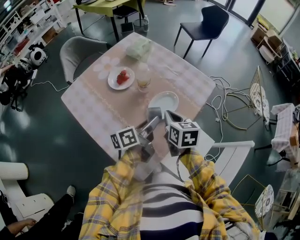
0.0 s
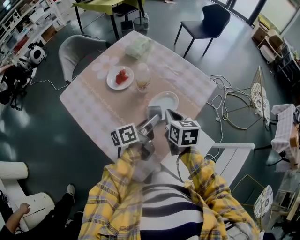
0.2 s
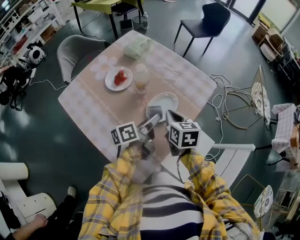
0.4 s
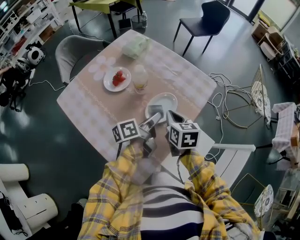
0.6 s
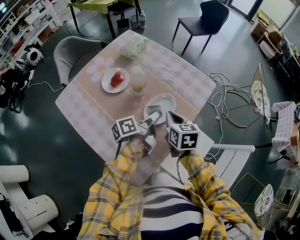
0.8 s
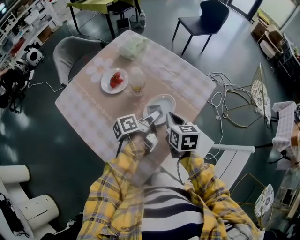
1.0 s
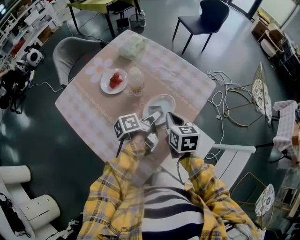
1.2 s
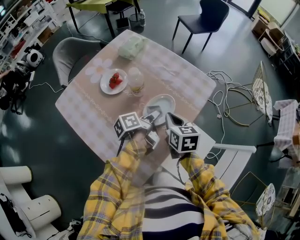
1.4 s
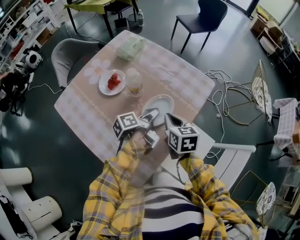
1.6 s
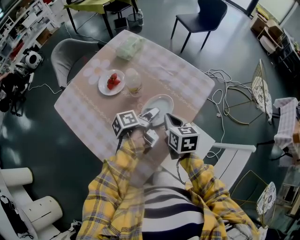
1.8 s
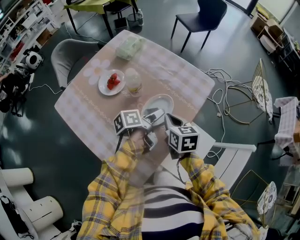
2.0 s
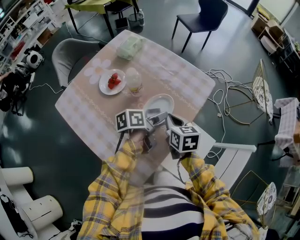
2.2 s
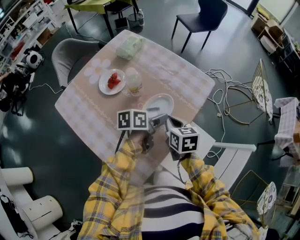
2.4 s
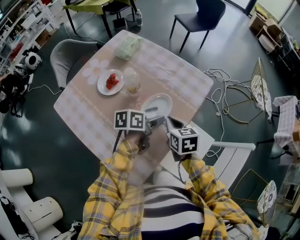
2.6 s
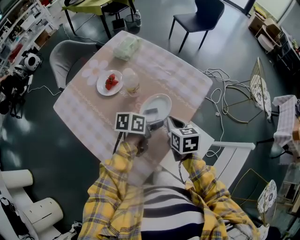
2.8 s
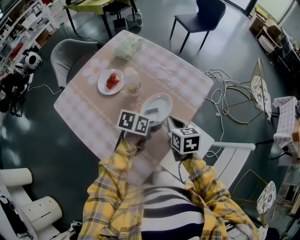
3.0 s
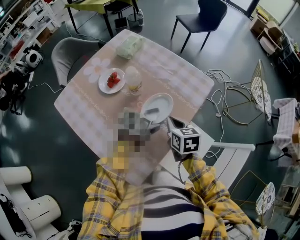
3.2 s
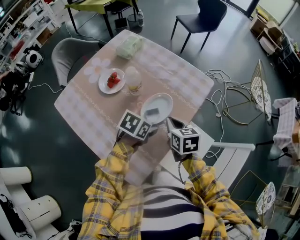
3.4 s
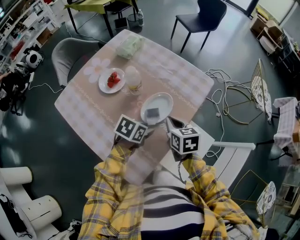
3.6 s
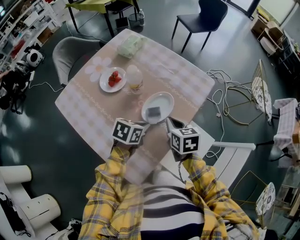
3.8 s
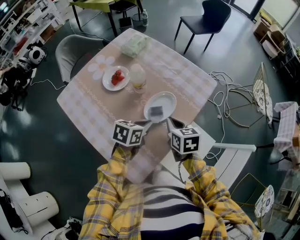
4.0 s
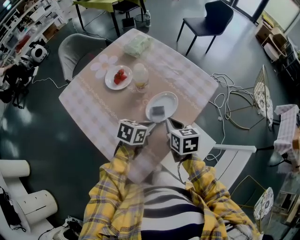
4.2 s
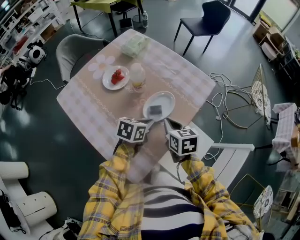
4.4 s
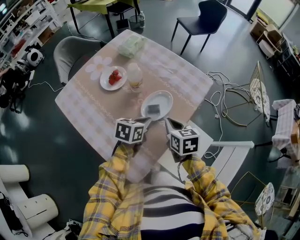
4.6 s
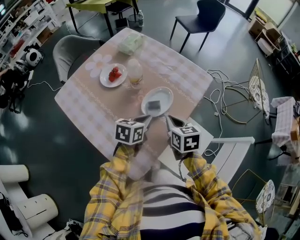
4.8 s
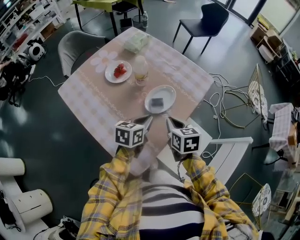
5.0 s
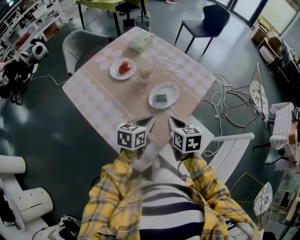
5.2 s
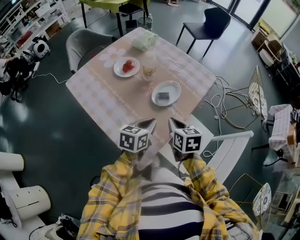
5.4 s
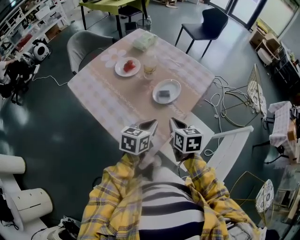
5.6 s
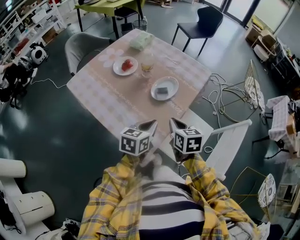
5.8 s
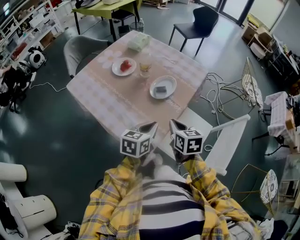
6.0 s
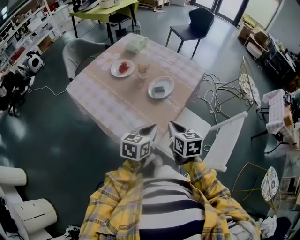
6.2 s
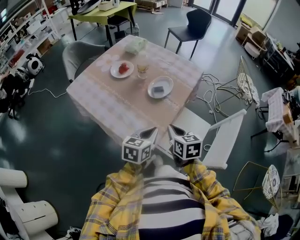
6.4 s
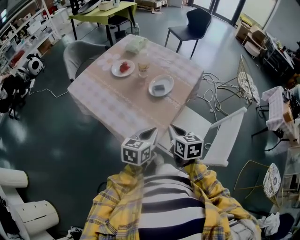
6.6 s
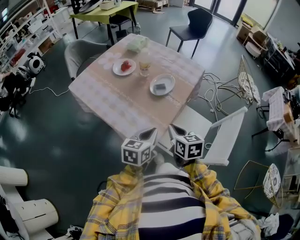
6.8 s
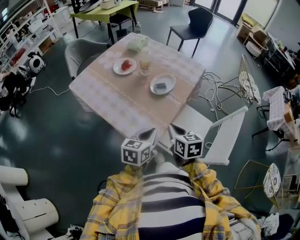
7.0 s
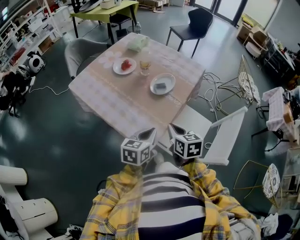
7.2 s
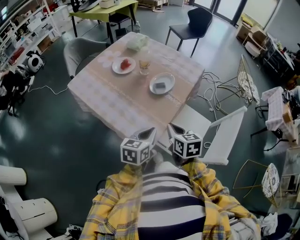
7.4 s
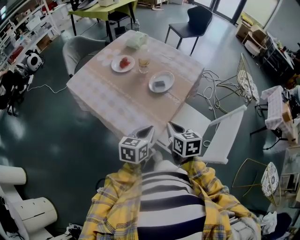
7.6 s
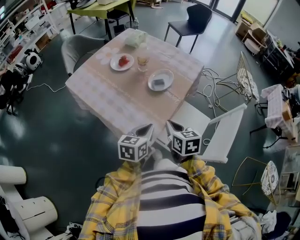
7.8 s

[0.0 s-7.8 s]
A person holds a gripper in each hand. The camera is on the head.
0.0 to 1.6 s: The right gripper ends up some 5 cm from where it was, while the left gripper heads forward and downward, covering some 10 cm, and changes its angle by approximately 30 degrees.
1.6 to 3.2 s: The left gripper is displaced backward by roughly 5 cm, rolls clockwise, seen from behind, by approximately 60 degrees, and opens, then closes once more.
3.2 to 4.6 s: The left gripper closes up.
4.6 to 6.2 s: Both grippers travel together backward, about 15 cm.
6.2 to 7.8 s: There are only small adjustments of the grippers.

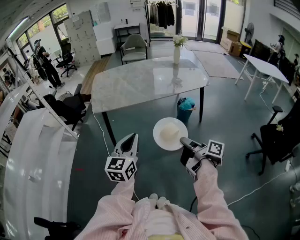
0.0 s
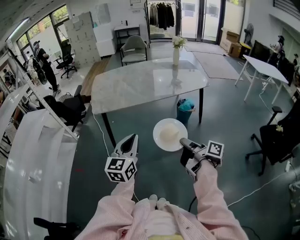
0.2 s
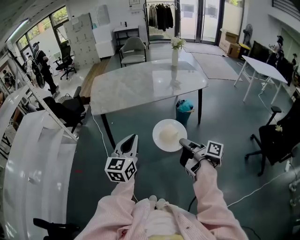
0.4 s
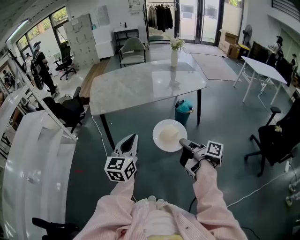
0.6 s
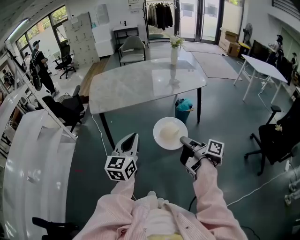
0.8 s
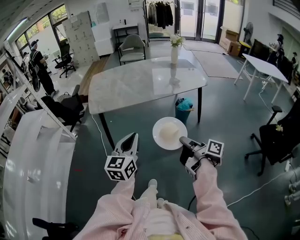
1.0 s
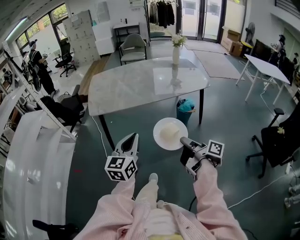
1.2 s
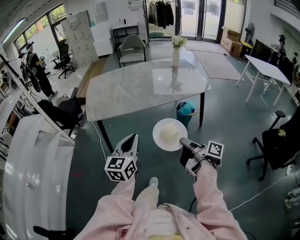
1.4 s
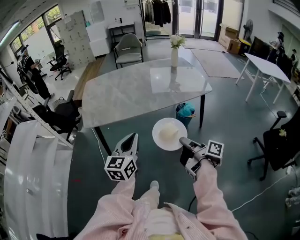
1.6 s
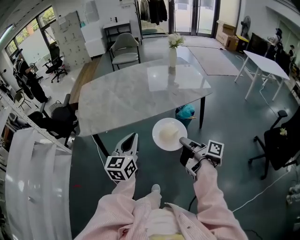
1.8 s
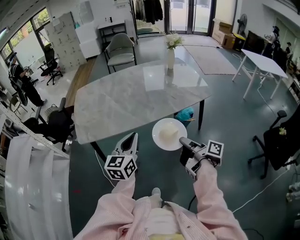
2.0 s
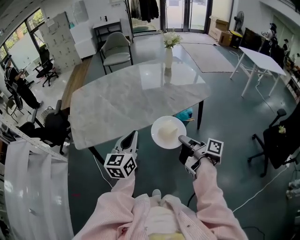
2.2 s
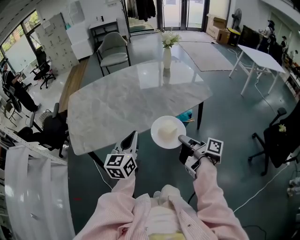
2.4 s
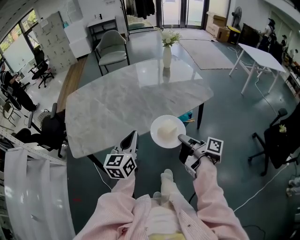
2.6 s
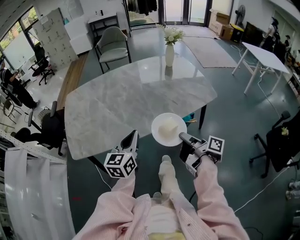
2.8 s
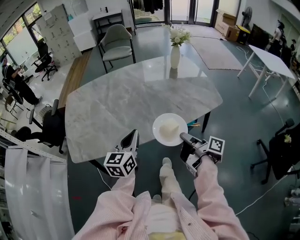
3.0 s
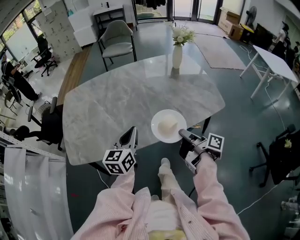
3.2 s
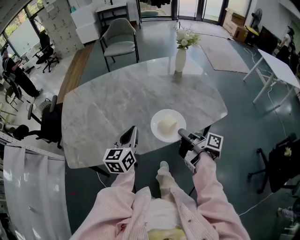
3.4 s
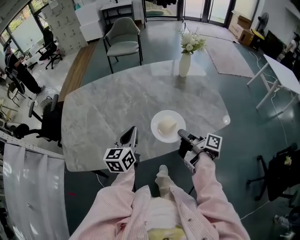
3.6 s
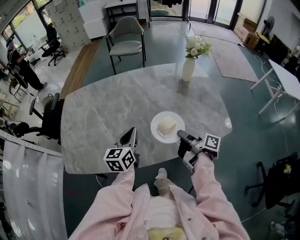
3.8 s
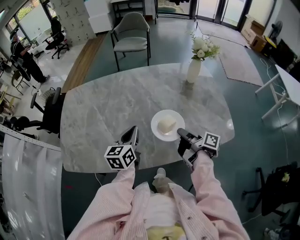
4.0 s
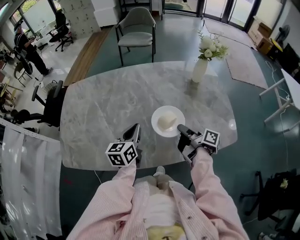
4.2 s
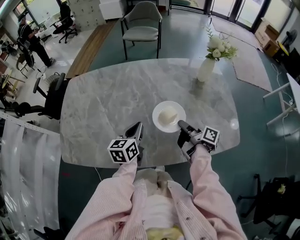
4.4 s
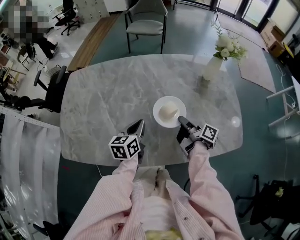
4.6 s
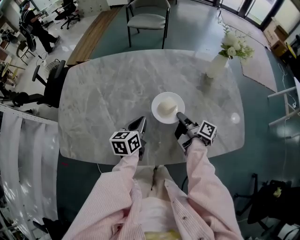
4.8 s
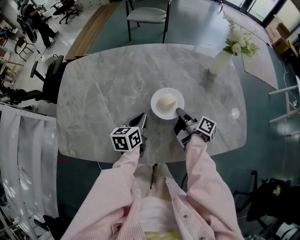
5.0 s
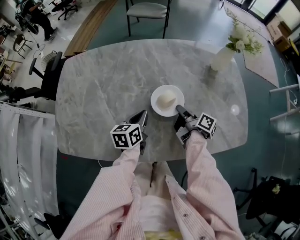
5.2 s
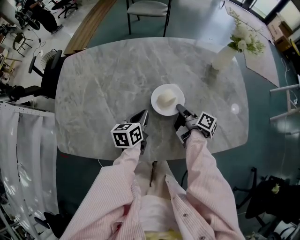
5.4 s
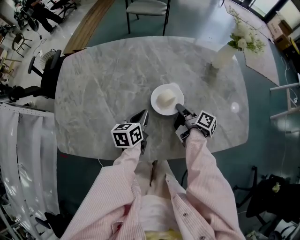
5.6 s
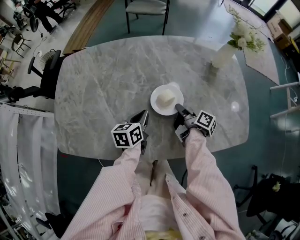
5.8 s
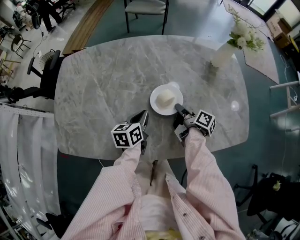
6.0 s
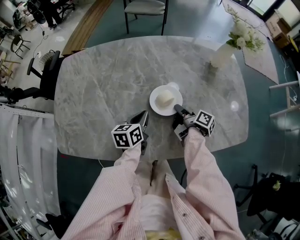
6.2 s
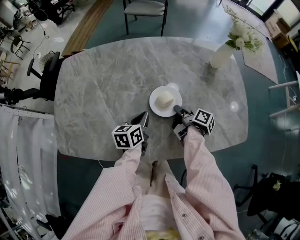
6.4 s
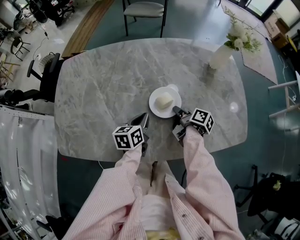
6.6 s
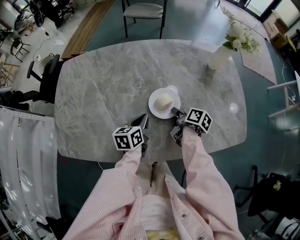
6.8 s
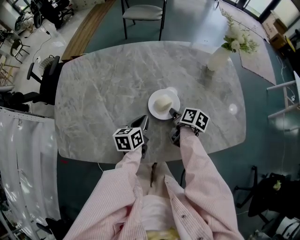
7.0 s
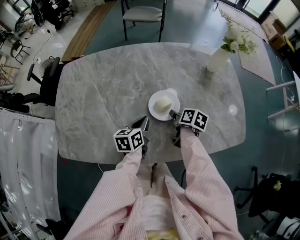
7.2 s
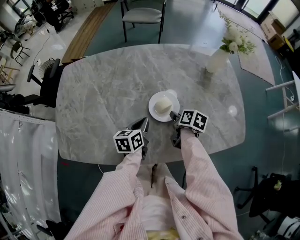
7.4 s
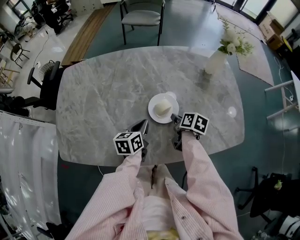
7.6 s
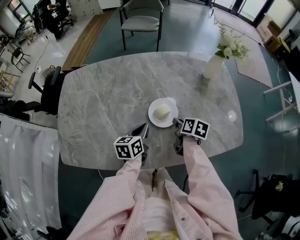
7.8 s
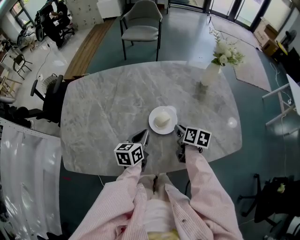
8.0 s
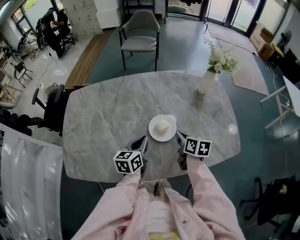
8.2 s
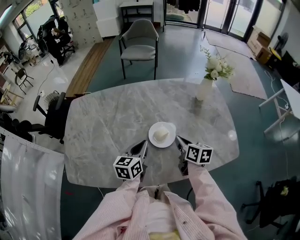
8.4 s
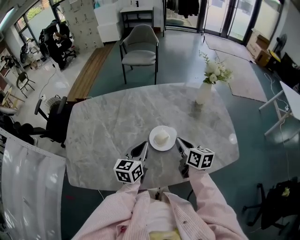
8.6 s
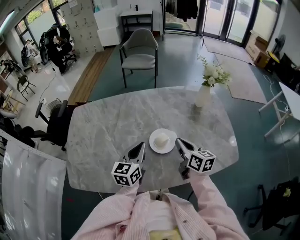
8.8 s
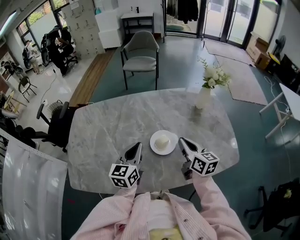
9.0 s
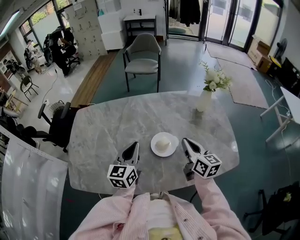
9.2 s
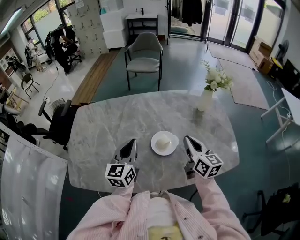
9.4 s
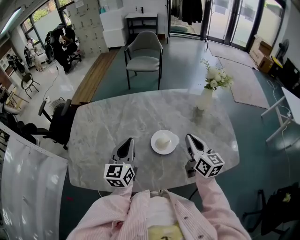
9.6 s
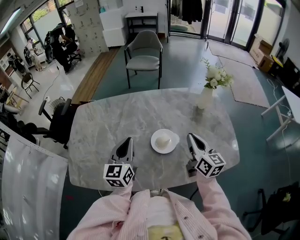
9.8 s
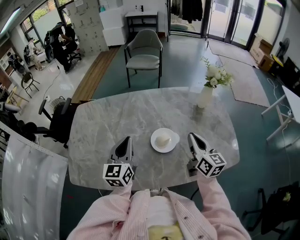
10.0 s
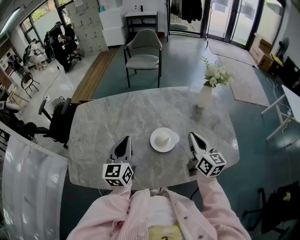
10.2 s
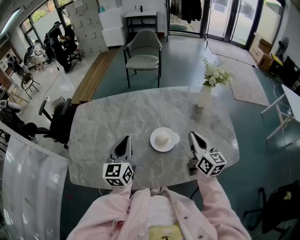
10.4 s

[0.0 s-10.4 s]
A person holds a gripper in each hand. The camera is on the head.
0.0 to 1.4 s: The left gripper shifts by approximately 10 cm.
1.4 to 3.0 s: The left gripper moves about 35 cm.
3.0 to 4.4 s: The left gripper moves some 25 cm, and swivels approximately 20 degrees.
4.4 to 6.0 s: The left gripper travels downward by approximately 10 cm.
7.4 to 9.0 s: The left gripper heads upward, covering approximately 15 cm, and turns by approximately 30 degrees.
9.0 to 10.4 s: The left gripper moves some 5 cm.

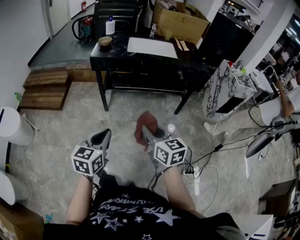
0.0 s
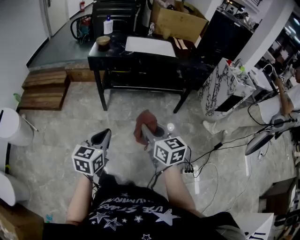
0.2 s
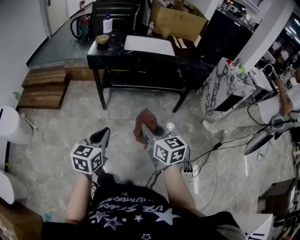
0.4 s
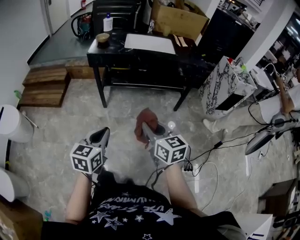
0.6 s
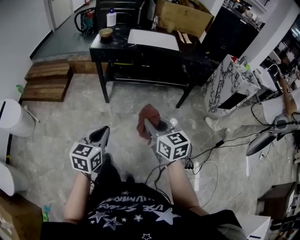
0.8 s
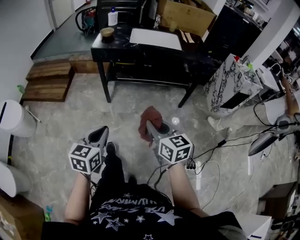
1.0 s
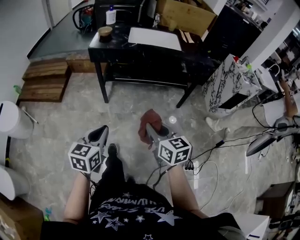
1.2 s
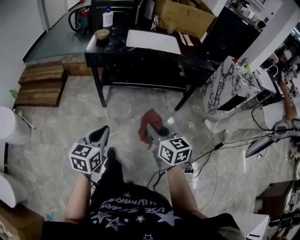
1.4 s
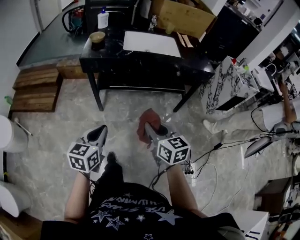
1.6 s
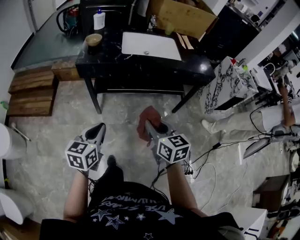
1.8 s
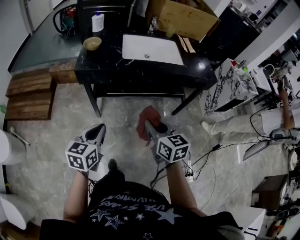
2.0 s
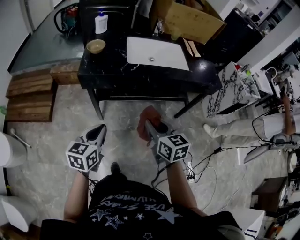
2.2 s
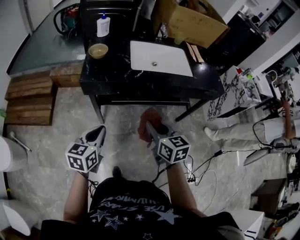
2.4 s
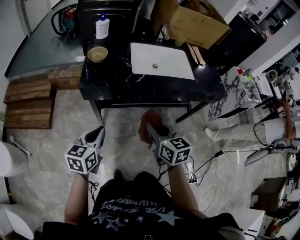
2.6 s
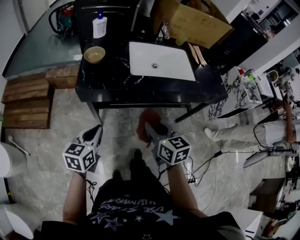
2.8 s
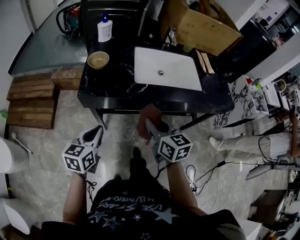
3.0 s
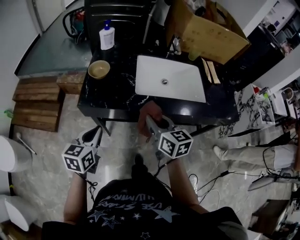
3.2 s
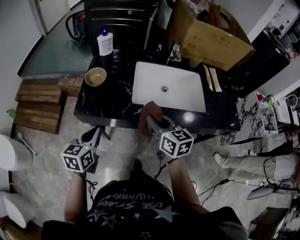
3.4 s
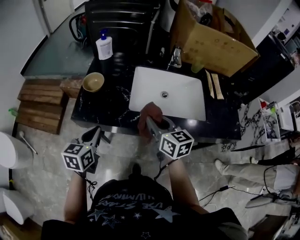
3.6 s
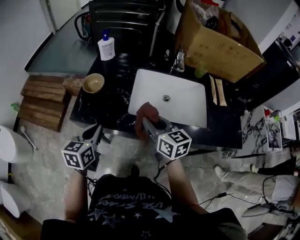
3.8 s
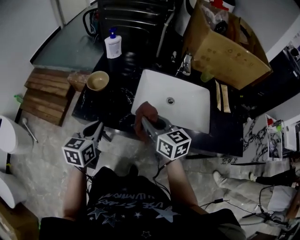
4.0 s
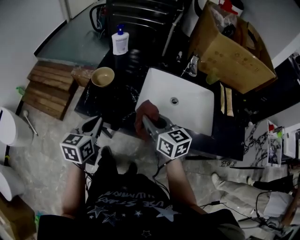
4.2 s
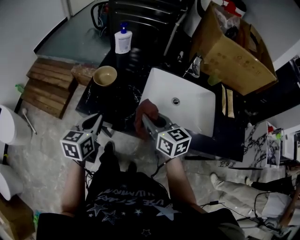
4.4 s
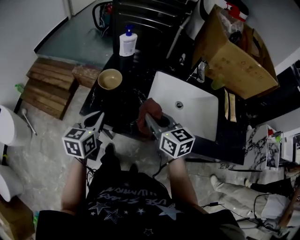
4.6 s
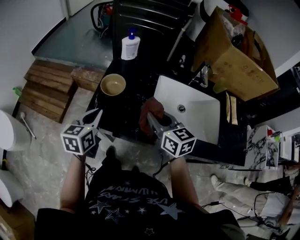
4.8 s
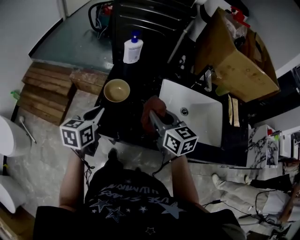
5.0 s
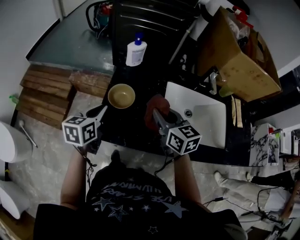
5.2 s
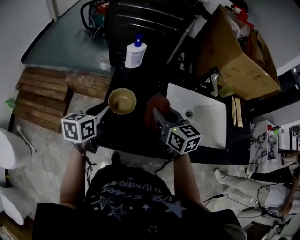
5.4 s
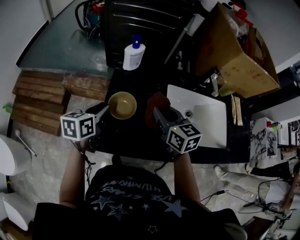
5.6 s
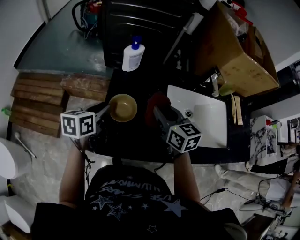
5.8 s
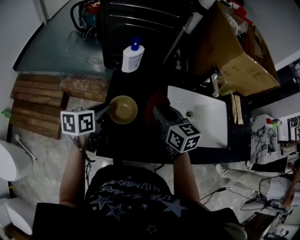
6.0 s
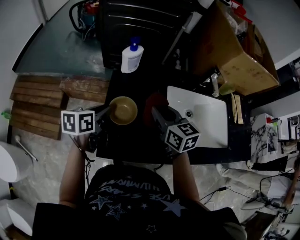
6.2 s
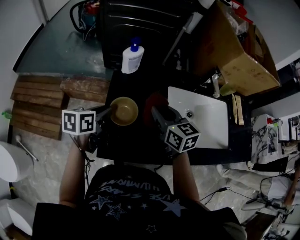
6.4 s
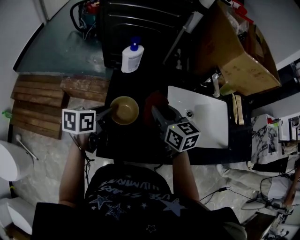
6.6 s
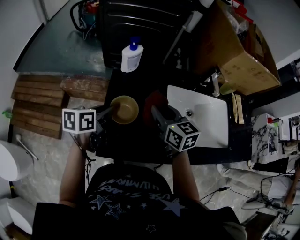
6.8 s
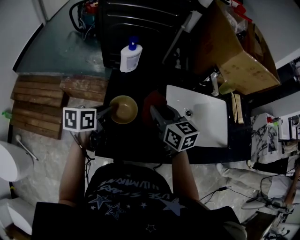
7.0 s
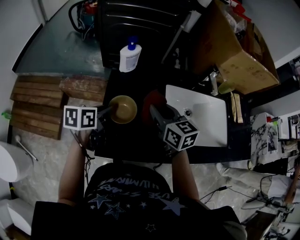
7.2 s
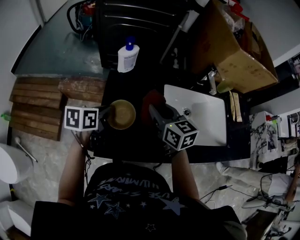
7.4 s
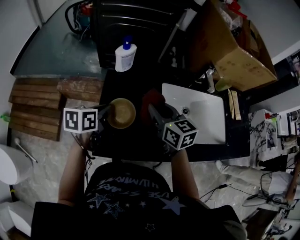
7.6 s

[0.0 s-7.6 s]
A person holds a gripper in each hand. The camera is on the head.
0.0 to 1.6 s: The grippers both shift forward by about 15 cm.
1.6 to 3.0 s: The grippers both shift forward by about 30 cm.
3.0 to 4.6 s: Both grippers move forward, roughly 20 cm. The right gripper rotates some 20 degrees.
4.6 to 6.0 s: The right gripper heads forward and to the left, covering approximately 20 cm; the left gripper shifts about 20 cm forward, swivels approximately 30 degrees, and opens its fingers.
6.0 to 7.6 s: There are only small adjustments of the grippers.
